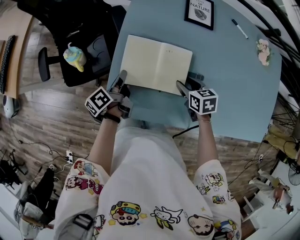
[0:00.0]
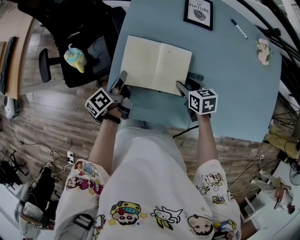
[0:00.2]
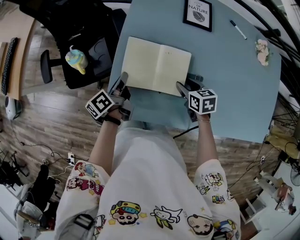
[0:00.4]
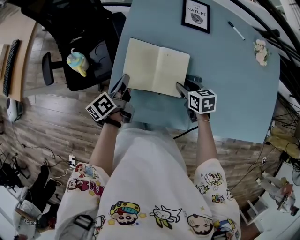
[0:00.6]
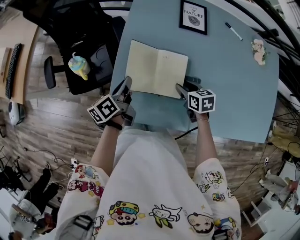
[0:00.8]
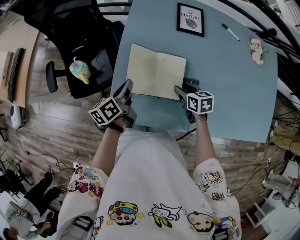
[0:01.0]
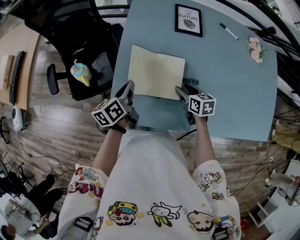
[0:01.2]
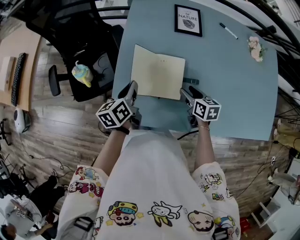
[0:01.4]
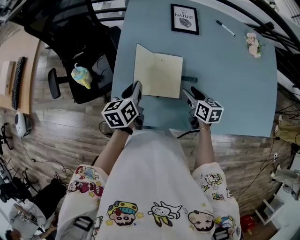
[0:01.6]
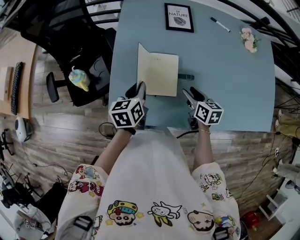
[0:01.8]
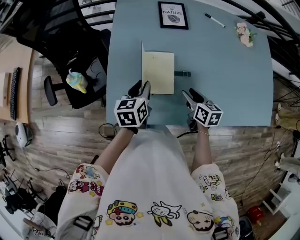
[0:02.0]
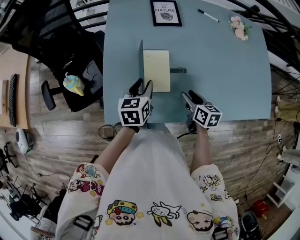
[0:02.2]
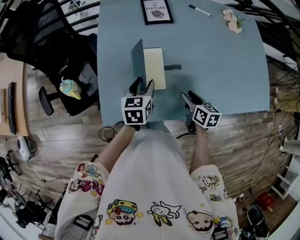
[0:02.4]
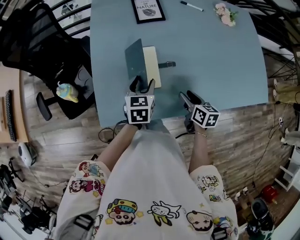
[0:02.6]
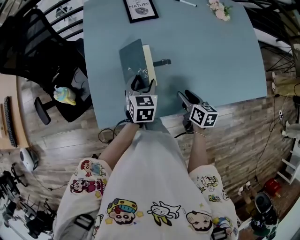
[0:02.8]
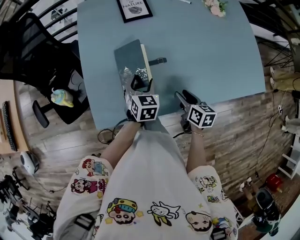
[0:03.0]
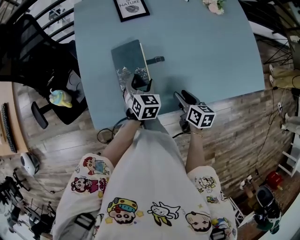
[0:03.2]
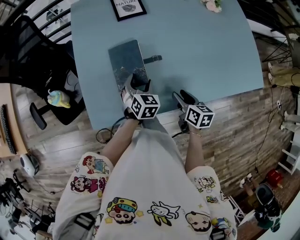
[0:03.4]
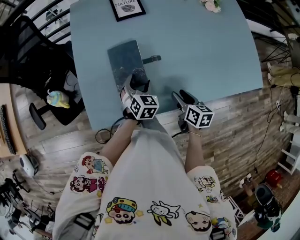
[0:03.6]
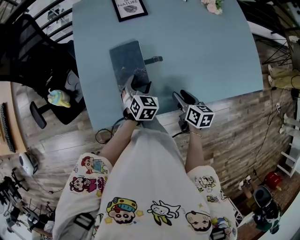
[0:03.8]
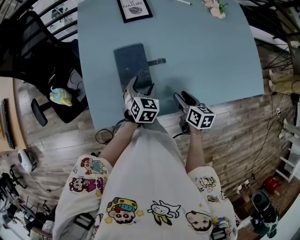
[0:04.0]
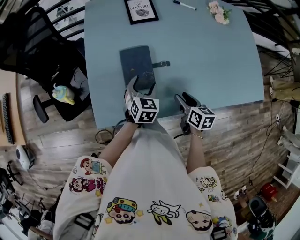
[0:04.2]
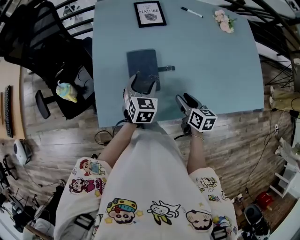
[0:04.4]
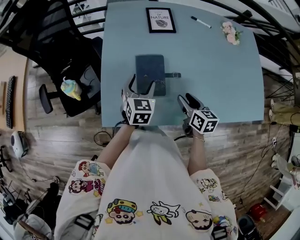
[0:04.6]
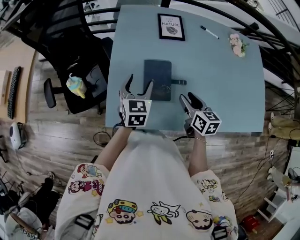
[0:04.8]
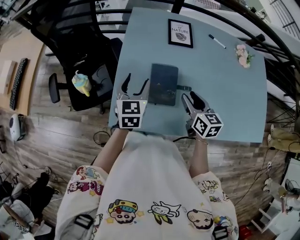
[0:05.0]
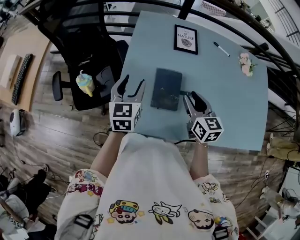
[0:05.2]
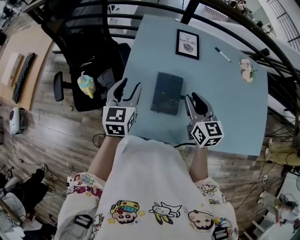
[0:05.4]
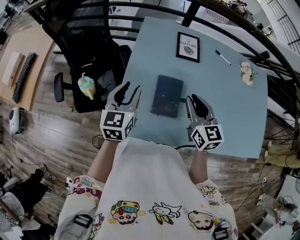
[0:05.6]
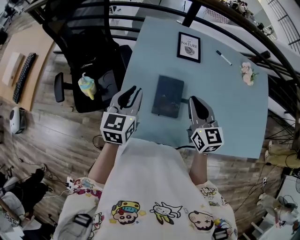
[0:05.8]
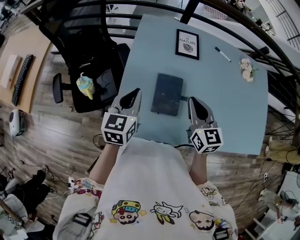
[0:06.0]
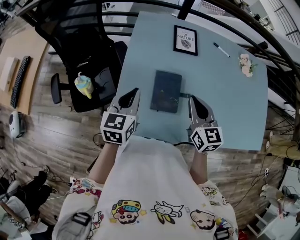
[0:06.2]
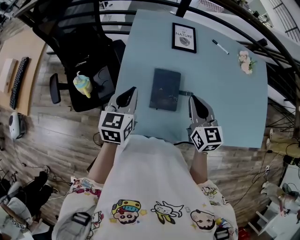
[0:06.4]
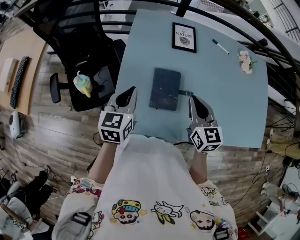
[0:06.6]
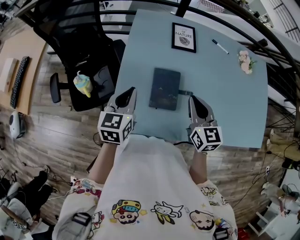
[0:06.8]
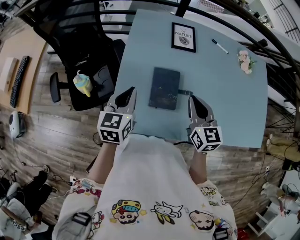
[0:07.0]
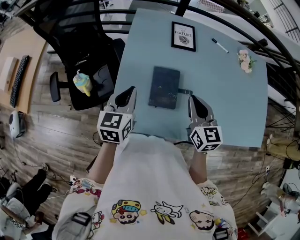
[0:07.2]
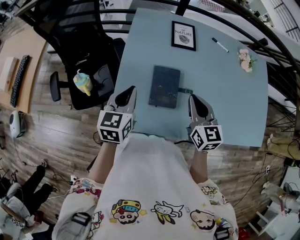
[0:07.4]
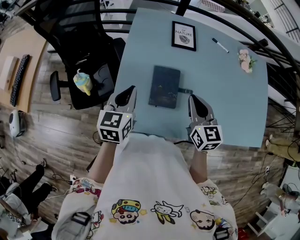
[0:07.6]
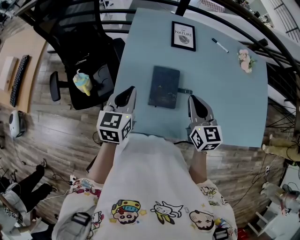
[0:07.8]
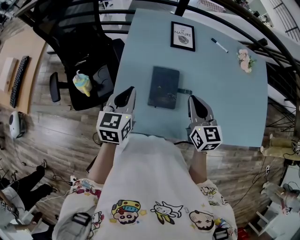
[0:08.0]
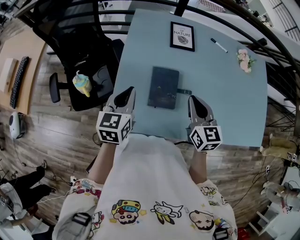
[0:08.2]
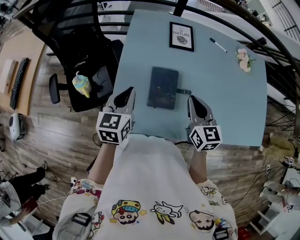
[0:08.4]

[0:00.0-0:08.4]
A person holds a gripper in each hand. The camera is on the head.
0:00.0 to 0:01.4: The left gripper moves upward and to the right, some 10 cm, and changes its angle by roughly 30 degrees.
0:01.4 to 0:02.8: The left gripper heads to the right, covering roughly 15 cm, rotates around the line of its fingers by approximately 50 degrees, clockwise from behind, and opens up. Meanwhile the right gripper heads backward and to the right, covering roughly 15 cm, and rotates roughly 20 degrees.
0:02.8 to 0:04.2: The grippers stay close to where they were, moving slightly.
0:04.2 to 0:05.6: The right gripper is displaced upward, forward and to the left by roughly 25 cm, changes its angle by some 40 degrees, and closes up, while the left gripper travels to the left and upward by some 25 cm, changes its angle by about 30 degrees, and closes up.
0:05.6 to 0:07.0: The left gripper closes.
0:07.0 to 0:08.4: The two grippers keep their place.

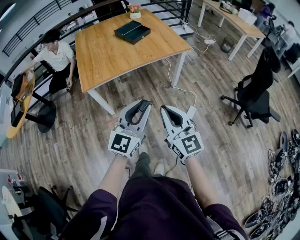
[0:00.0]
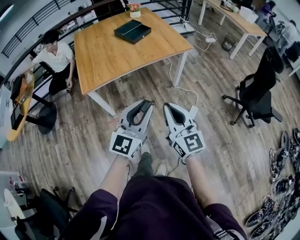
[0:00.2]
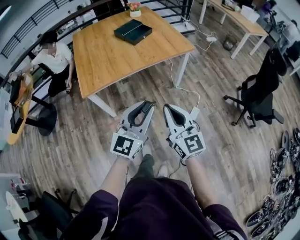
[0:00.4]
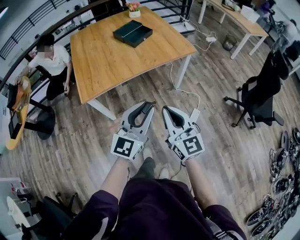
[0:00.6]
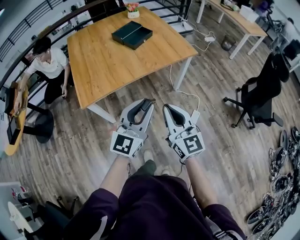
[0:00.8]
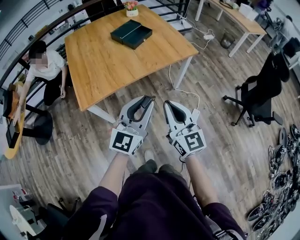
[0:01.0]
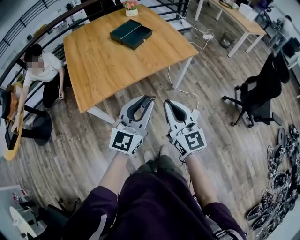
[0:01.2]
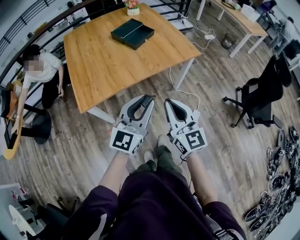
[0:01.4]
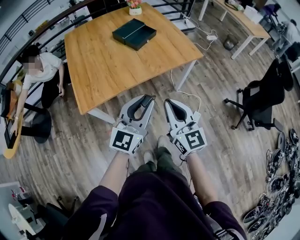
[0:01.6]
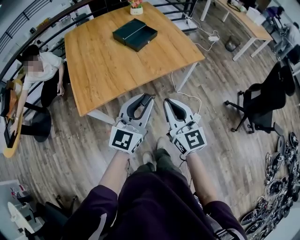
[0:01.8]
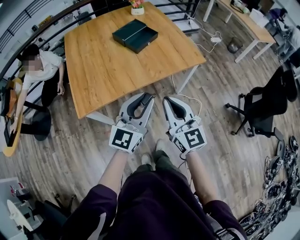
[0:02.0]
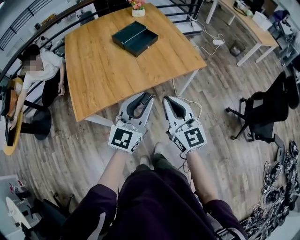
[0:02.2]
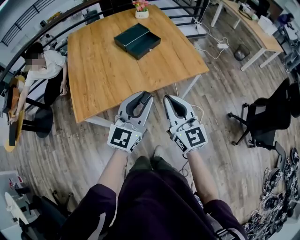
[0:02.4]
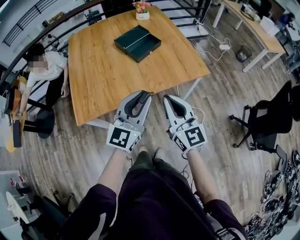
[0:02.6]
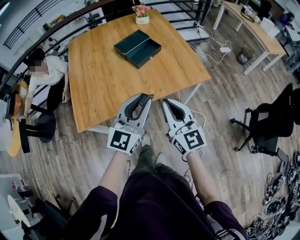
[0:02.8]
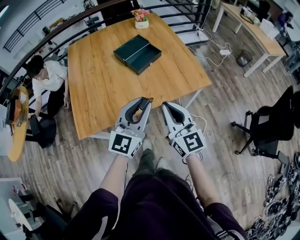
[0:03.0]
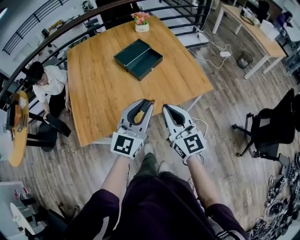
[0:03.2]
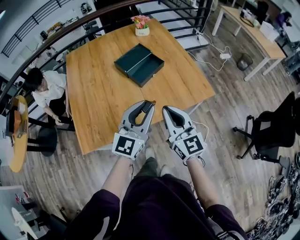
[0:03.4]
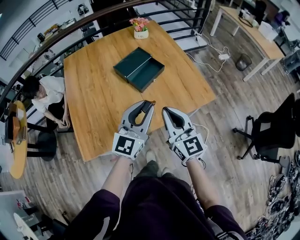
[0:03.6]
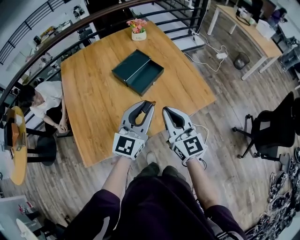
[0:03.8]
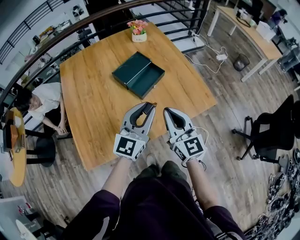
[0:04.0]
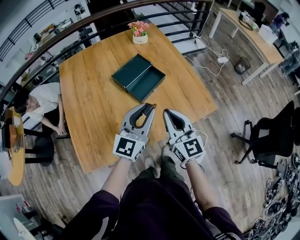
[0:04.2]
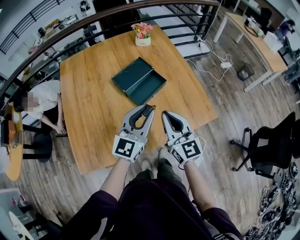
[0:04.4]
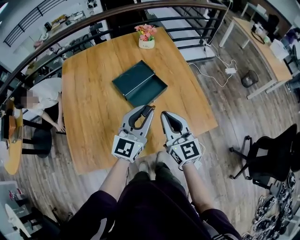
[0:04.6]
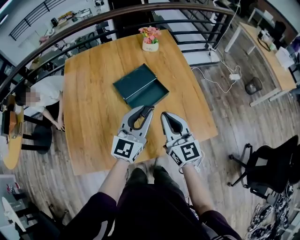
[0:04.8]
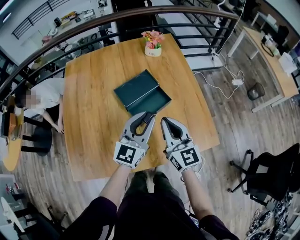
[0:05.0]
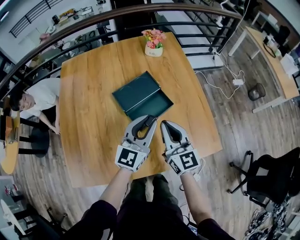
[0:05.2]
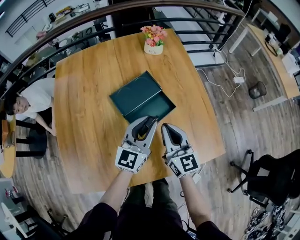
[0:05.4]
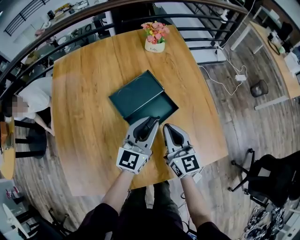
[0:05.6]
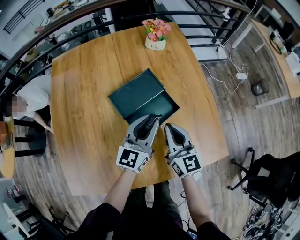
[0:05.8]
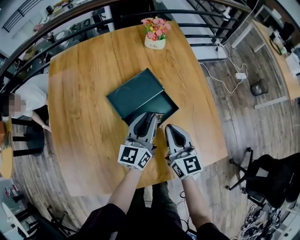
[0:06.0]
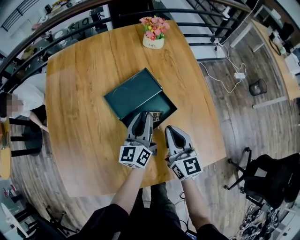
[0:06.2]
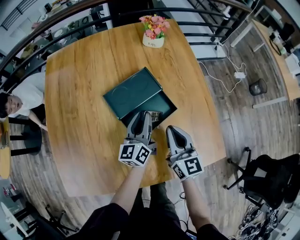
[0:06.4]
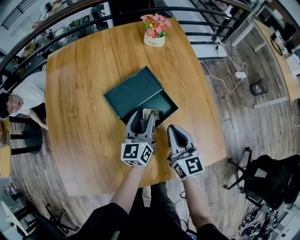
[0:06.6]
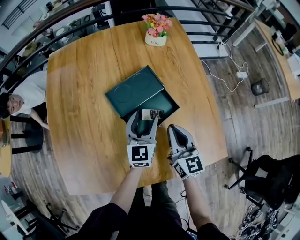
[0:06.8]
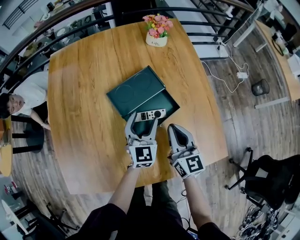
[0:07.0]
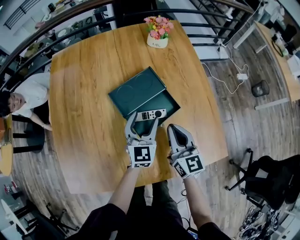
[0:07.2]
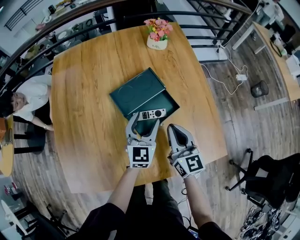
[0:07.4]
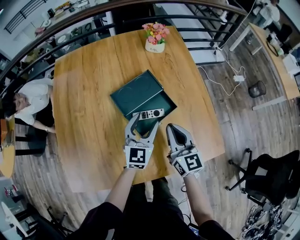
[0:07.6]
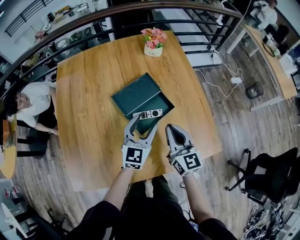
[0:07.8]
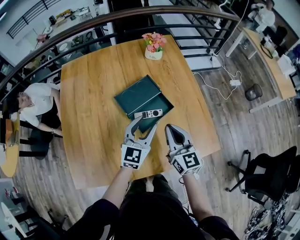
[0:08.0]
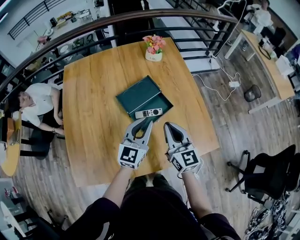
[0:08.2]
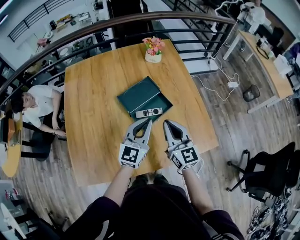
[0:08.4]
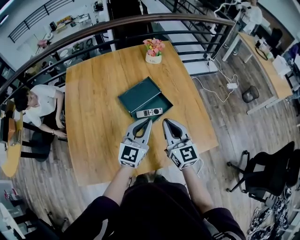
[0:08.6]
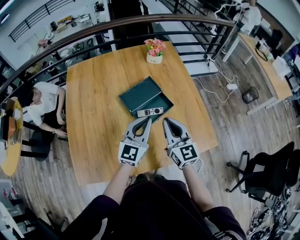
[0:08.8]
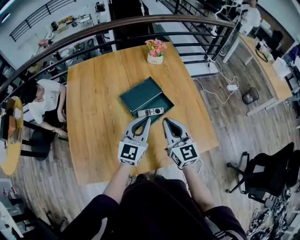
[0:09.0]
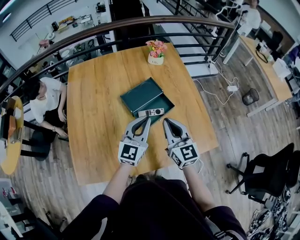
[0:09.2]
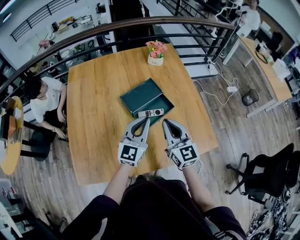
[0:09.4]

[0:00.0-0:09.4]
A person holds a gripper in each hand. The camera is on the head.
0:00.0 to 0:01.6: The left gripper heads forward and to the left, covering about 30 cm. The right gripper moves forward, some 25 cm.
0:01.6 to 0:03.2: Both grippers travel together forward, approximately 25 cm.
0:03.2 to 0:04.8: Both grippers move forward, approximately 30 cm.
0:04.8 to 0:06.2: Both grippers move forward and downward, some 25 cm. The left gripper changes its angle by roughly 40 degrees.
0:06.2 to 0:07.8: The right gripper is displaced upward by roughly 5 cm; the left gripper moves backward and upward, some 10 cm, swivels some 40 degrees, and opens up.
0:07.8 to 0:09.4: Both grippers travel together upward and backward, some 10 cm. The left gripper closes up.

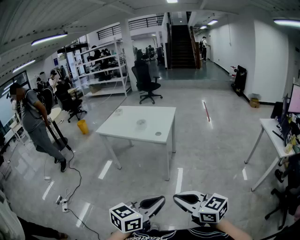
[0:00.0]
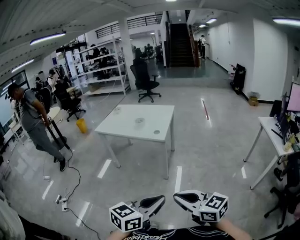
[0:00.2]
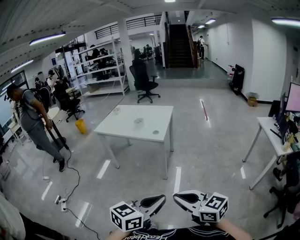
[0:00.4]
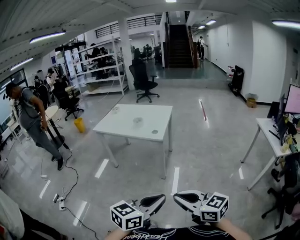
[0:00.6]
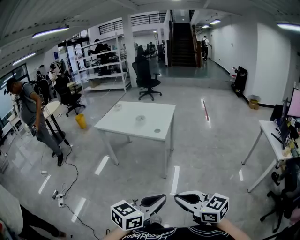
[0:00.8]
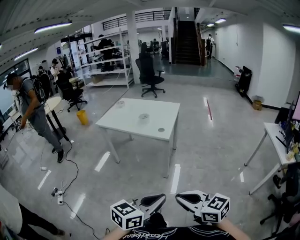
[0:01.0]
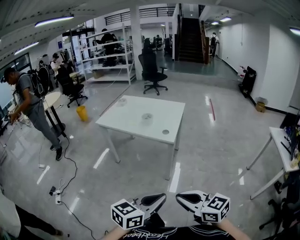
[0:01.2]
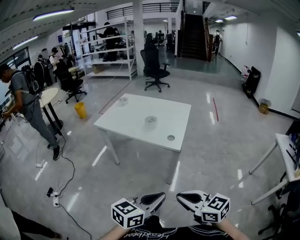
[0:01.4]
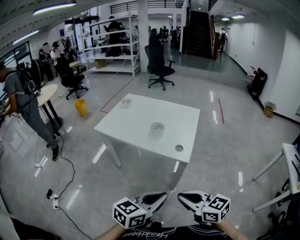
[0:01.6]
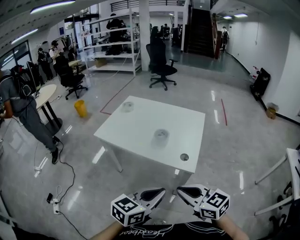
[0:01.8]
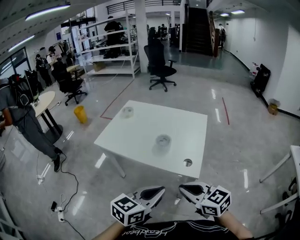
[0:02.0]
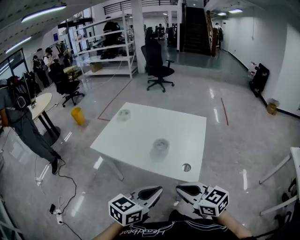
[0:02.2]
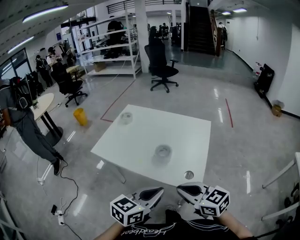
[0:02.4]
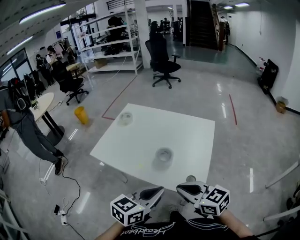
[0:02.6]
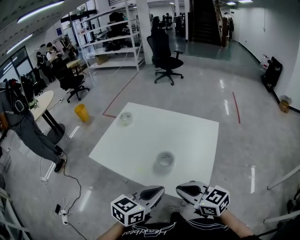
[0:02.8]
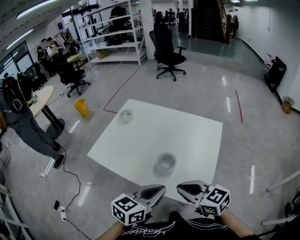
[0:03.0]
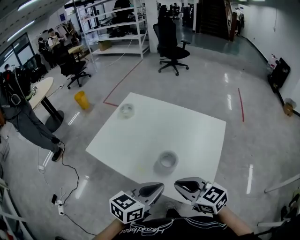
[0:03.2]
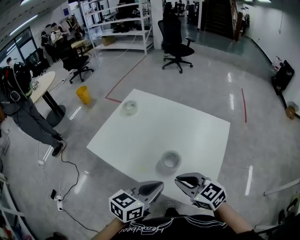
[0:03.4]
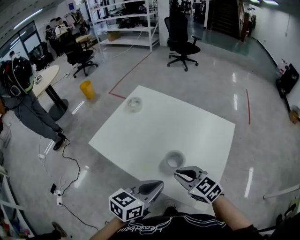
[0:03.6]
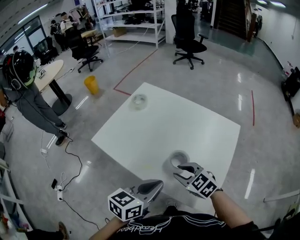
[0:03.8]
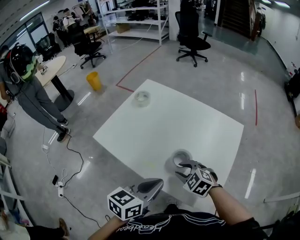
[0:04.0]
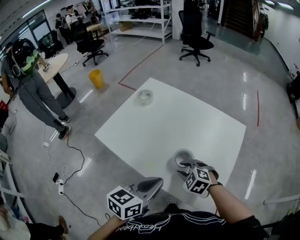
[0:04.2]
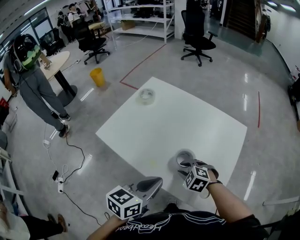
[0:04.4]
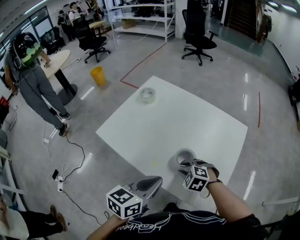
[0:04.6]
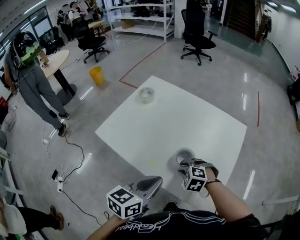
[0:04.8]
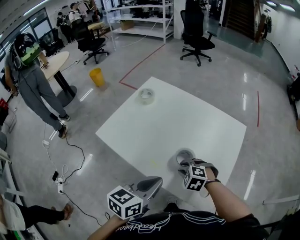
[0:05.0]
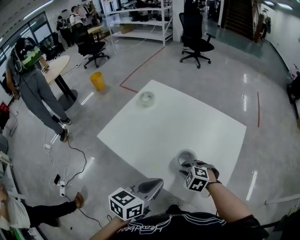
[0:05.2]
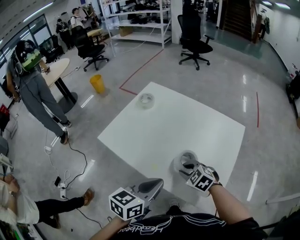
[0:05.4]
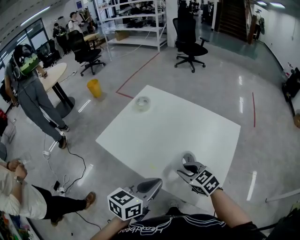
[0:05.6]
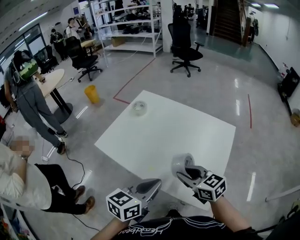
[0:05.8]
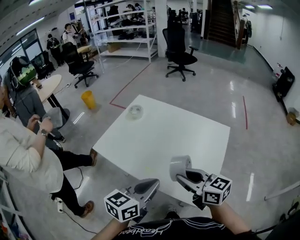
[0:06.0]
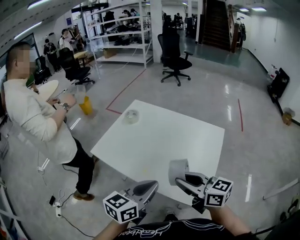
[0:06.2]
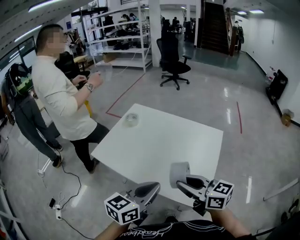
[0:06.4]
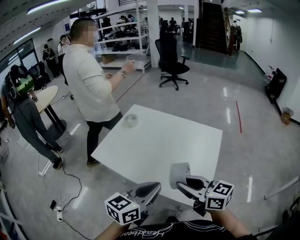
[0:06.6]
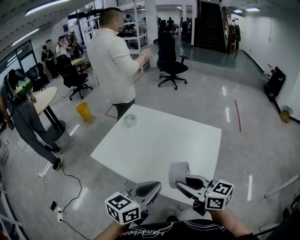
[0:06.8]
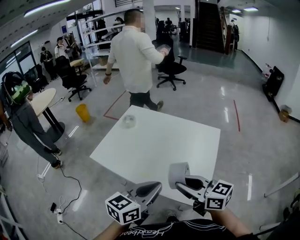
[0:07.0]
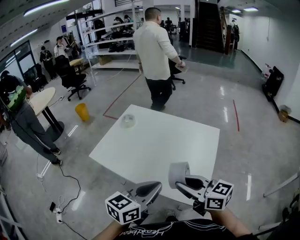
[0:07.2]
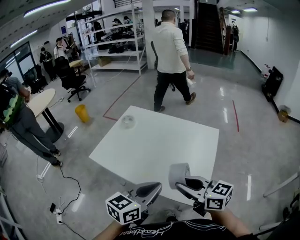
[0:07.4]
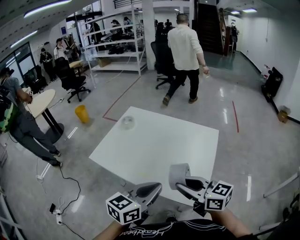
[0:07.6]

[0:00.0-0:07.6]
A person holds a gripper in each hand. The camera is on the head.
0:00.0 to 0:01.6: Both grippers move forward, approximately 30 cm.
0:01.6 to 0:03.0: The two grippers go some 35 cm forward.
0:03.0 to 0:04.6: The right gripper travels downward and forward by about 20 cm, points its fingers roughly 40 degrees further downward, and opens up; the left gripper moves to the left, about 5 cm.
0:04.6 to 0:06.0: The left gripper goes about 5 cm upward. The right gripper moves upward, roughly 20 cm, and points its fingers approximately 50 degrees further upward.
0:06.0 to 0:07.6: The right gripper changes place by about 5 cm.
